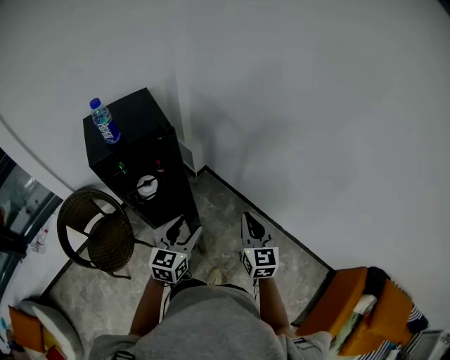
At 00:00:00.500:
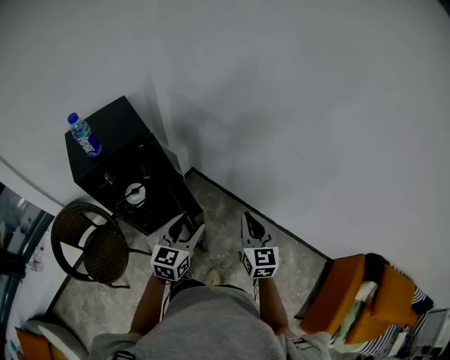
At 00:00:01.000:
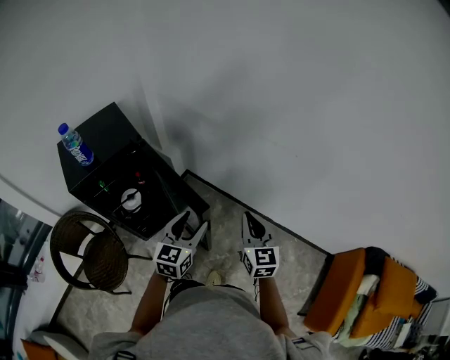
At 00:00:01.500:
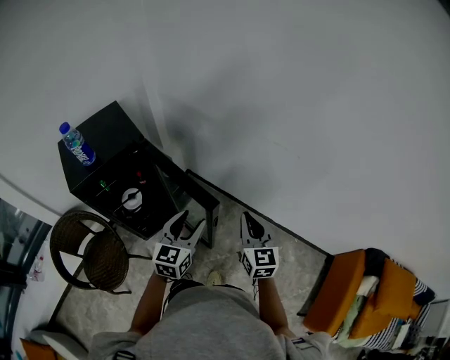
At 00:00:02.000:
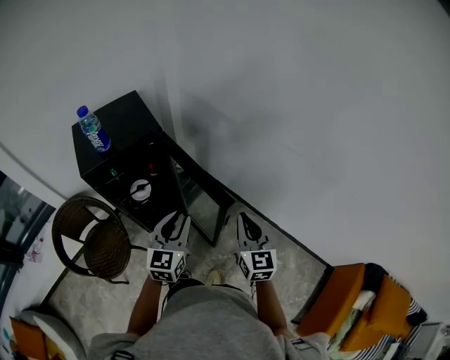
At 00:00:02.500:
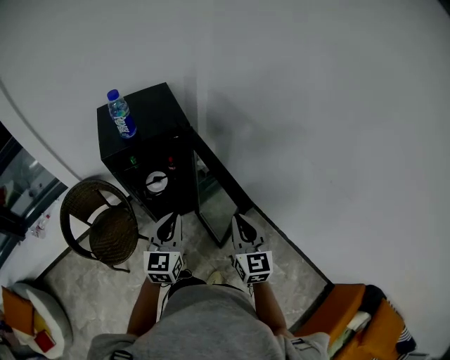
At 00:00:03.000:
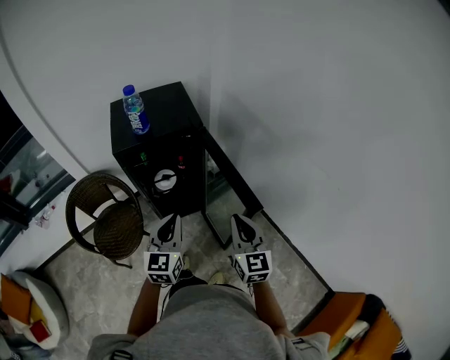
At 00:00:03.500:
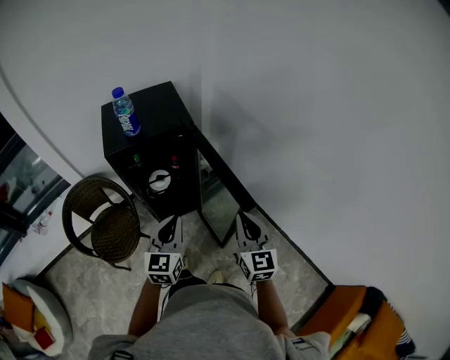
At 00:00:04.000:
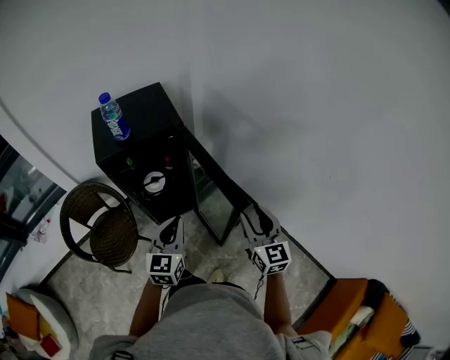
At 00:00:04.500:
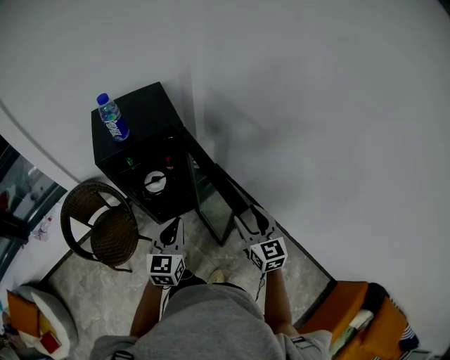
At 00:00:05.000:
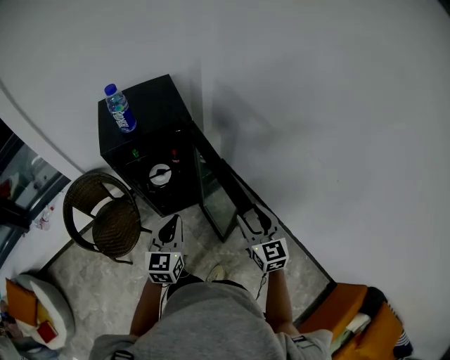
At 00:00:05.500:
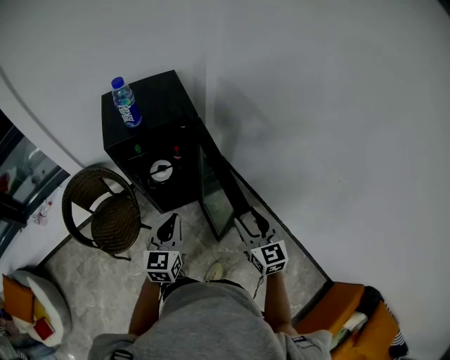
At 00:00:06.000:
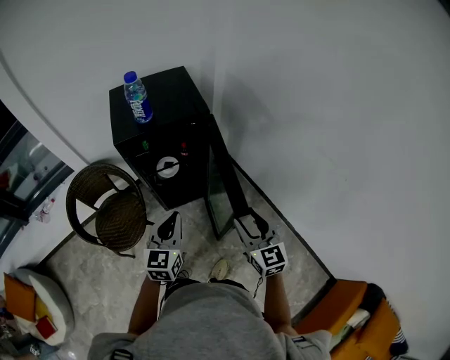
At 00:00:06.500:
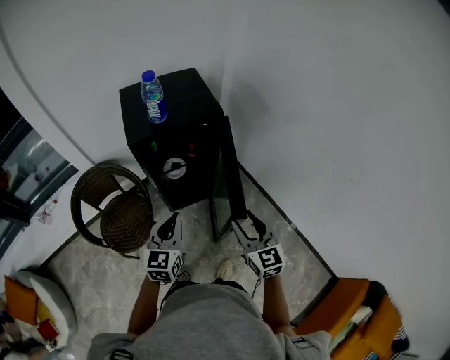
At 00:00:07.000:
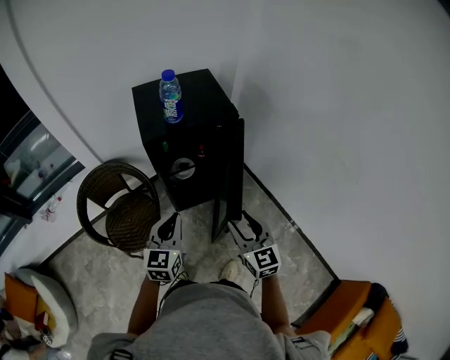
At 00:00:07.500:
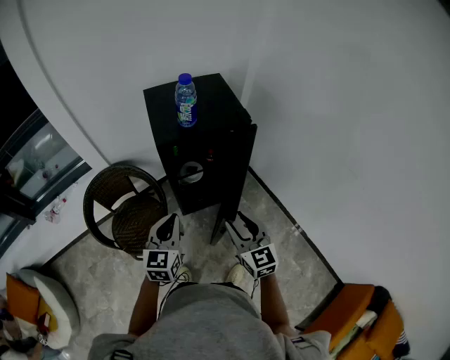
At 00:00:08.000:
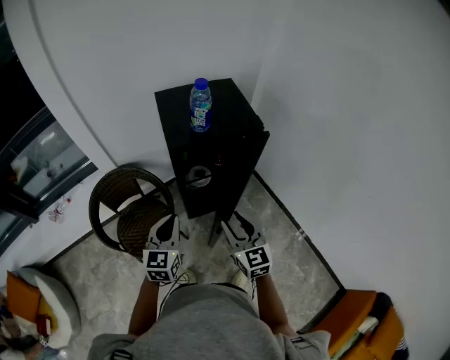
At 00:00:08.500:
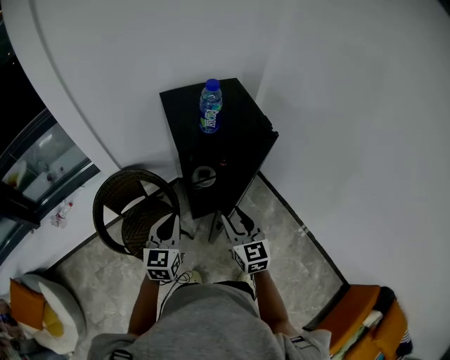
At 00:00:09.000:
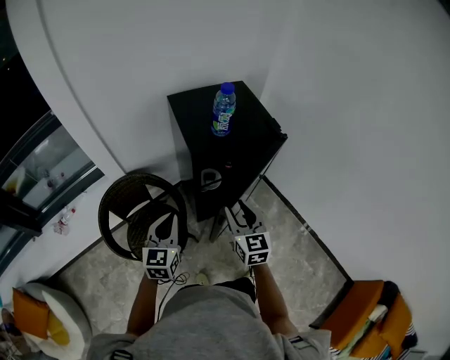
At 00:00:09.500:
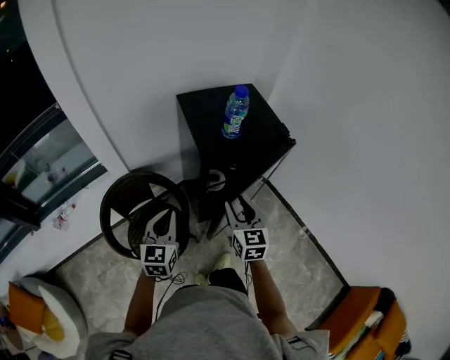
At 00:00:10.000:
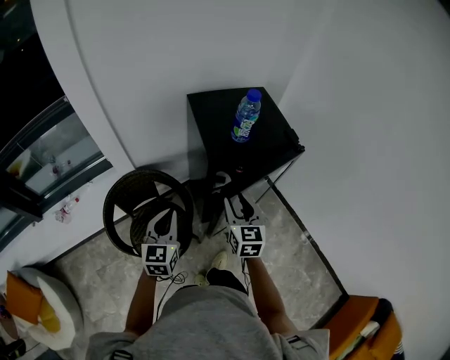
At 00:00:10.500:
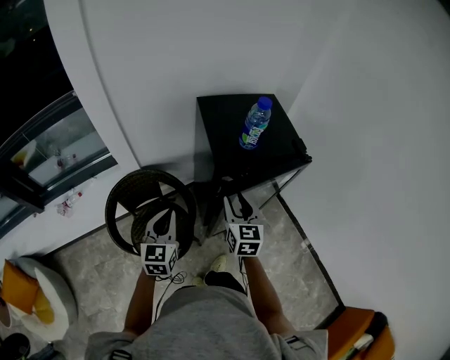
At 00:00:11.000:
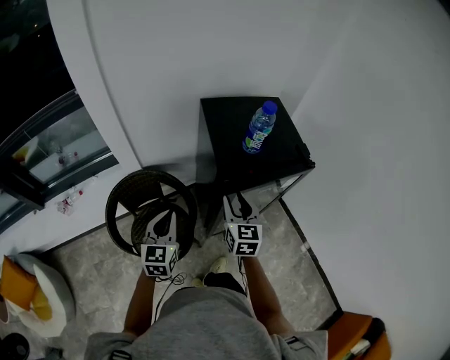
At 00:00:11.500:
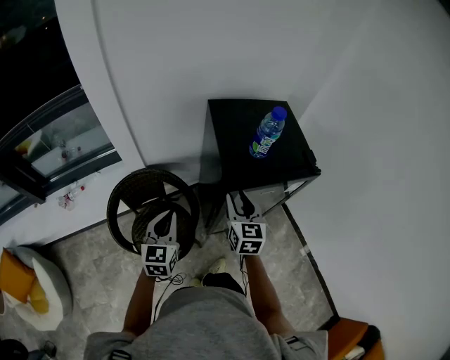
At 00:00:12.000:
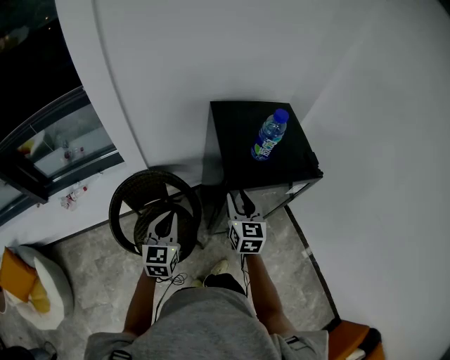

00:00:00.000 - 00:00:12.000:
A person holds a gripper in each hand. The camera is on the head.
00:00:00.000 - 00:00:02.000: The left gripper travels to the right and back again, some 5 cm each way, and closes.
00:00:02.000 - 00:00:04.000: The left gripper is displaced to the left by roughly 5 cm, and closes up, while the right gripper goes to the left and returns, roughly 10 cm each way, and opens its fingers.
00:00:04.000 - 00:00:06.000: Both grippers move to the left, roughly 10 cm.
00:00:06.000 - 00:00:08.000: The grippers both shift to the left by roughly 20 cm.
00:00:08.000 - 00:00:10.000: The right gripper is displaced forward and to the left by roughly 15 cm; the left gripper goes about 15 cm to the left and forward.
00:00:10.000 - 00:00:12.000: The right gripper travels forward by some 5 cm.

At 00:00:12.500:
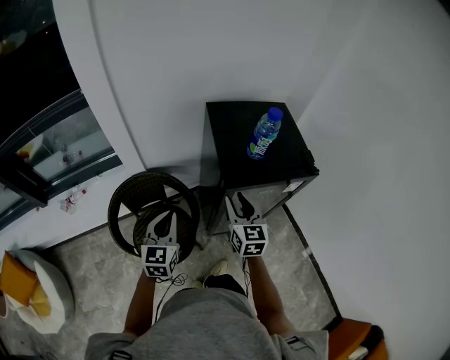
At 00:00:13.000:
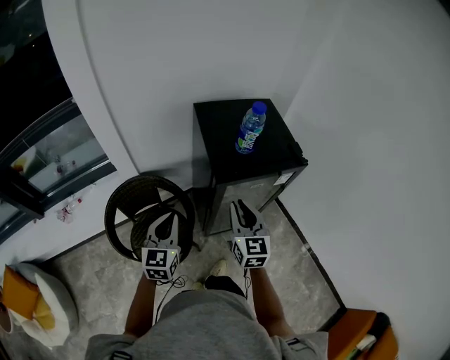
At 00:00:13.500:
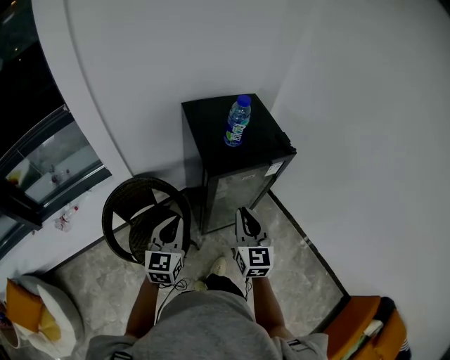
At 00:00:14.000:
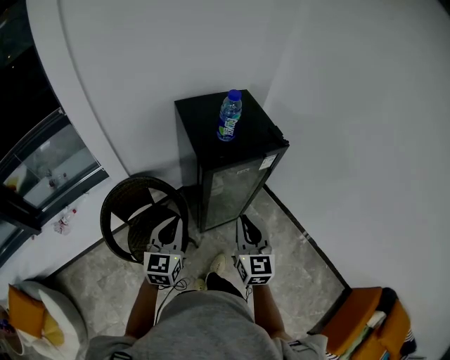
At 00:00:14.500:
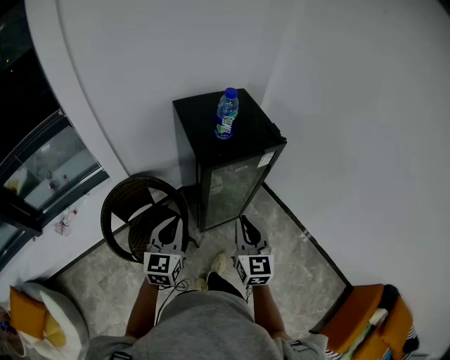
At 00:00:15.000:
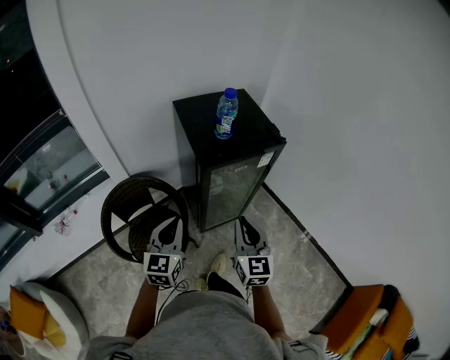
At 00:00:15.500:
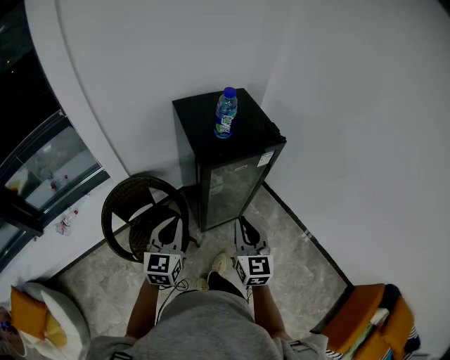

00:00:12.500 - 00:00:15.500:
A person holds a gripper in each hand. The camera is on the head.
00:00:12.500 - 00:00:14.000: The left gripper moves backward and to the right, about 10 cm. The right gripper goes roughly 20 cm backward and to the right, and closes up.
00:00:14.000 - 00:00:15.500: The grippers stay close to where they were, moving slightly.

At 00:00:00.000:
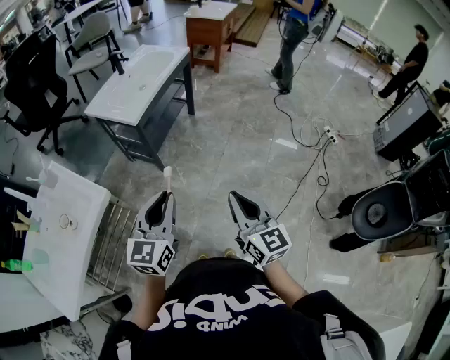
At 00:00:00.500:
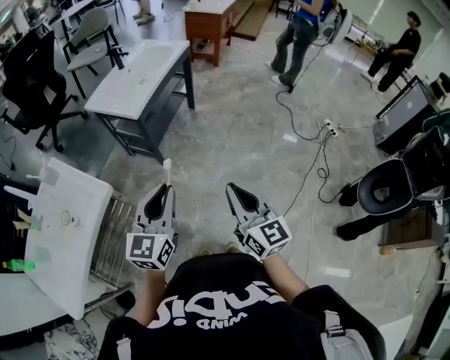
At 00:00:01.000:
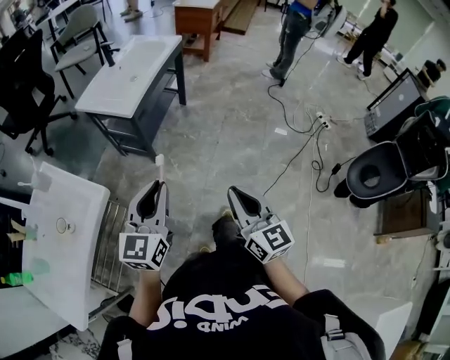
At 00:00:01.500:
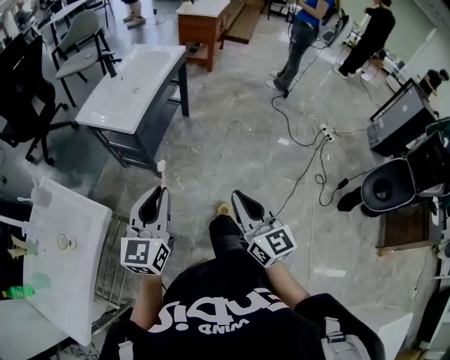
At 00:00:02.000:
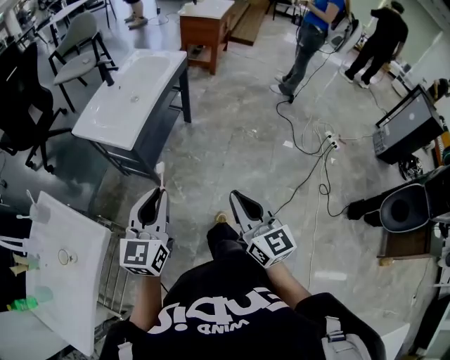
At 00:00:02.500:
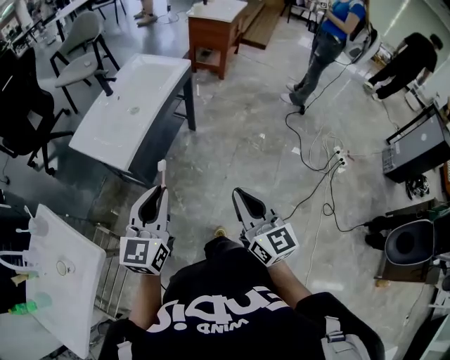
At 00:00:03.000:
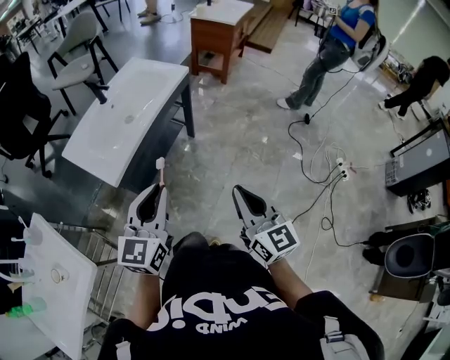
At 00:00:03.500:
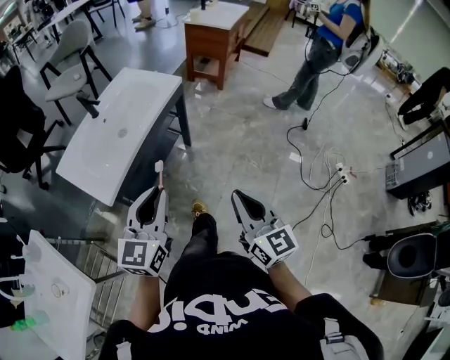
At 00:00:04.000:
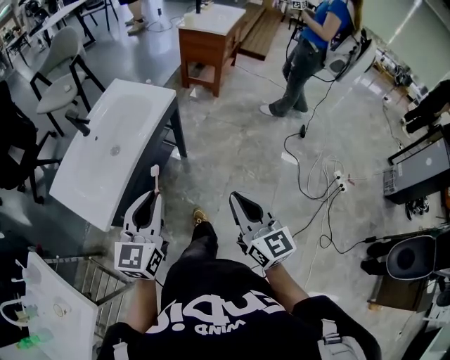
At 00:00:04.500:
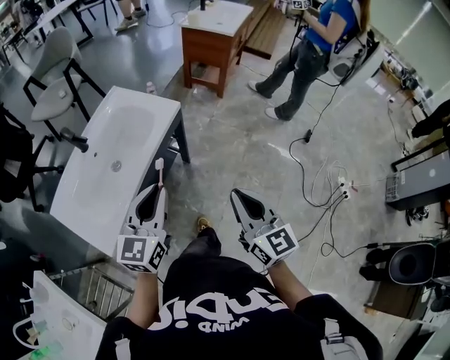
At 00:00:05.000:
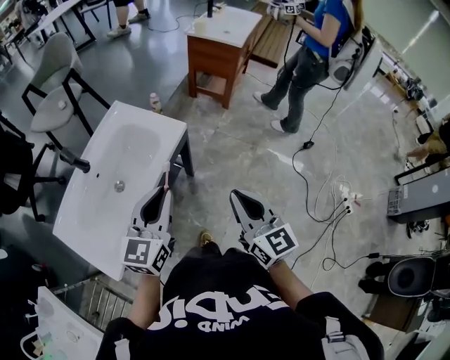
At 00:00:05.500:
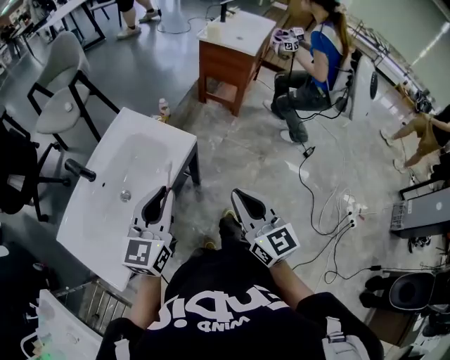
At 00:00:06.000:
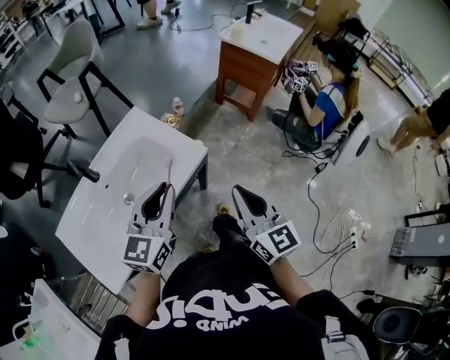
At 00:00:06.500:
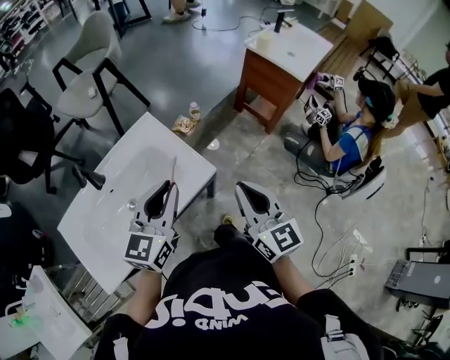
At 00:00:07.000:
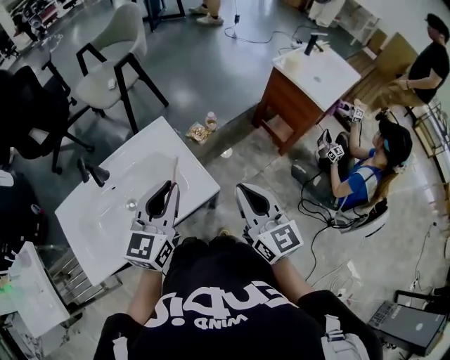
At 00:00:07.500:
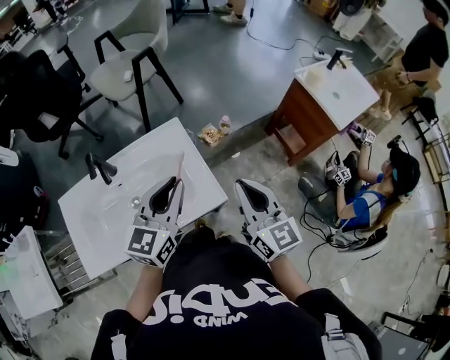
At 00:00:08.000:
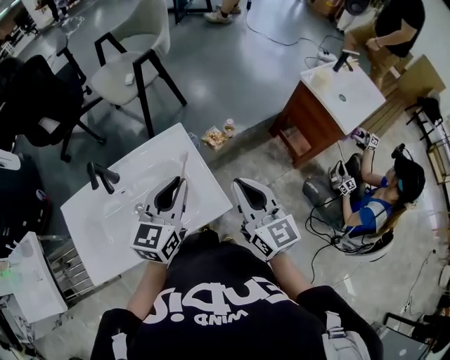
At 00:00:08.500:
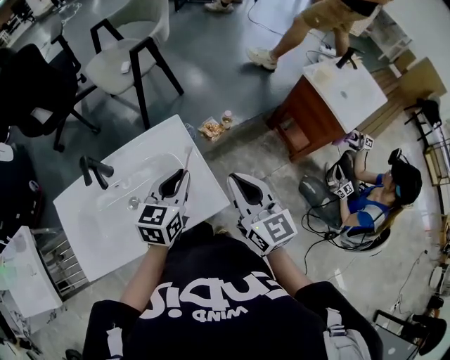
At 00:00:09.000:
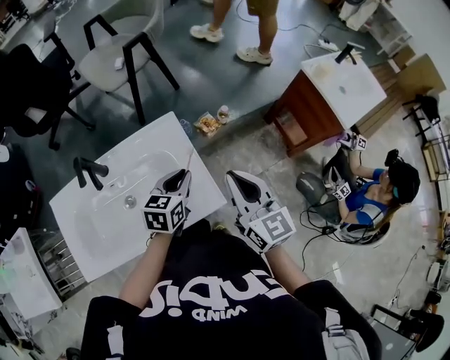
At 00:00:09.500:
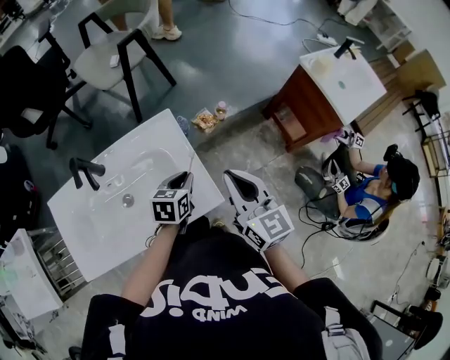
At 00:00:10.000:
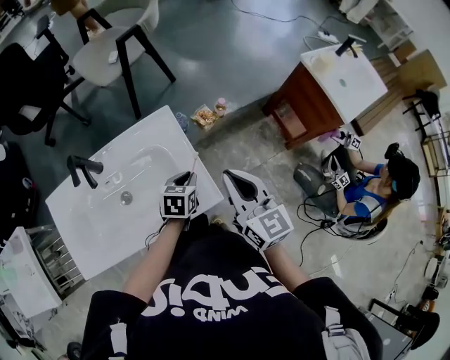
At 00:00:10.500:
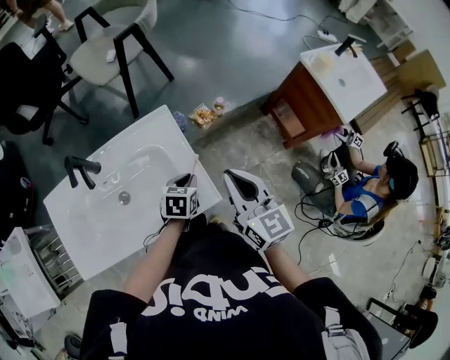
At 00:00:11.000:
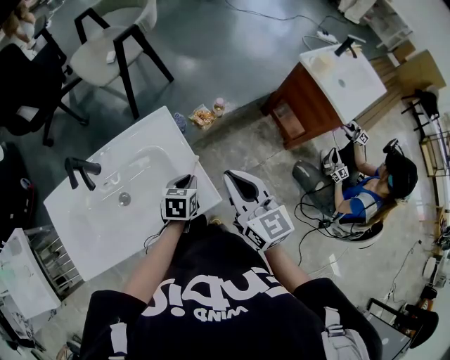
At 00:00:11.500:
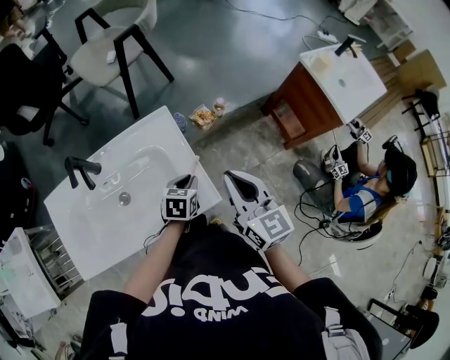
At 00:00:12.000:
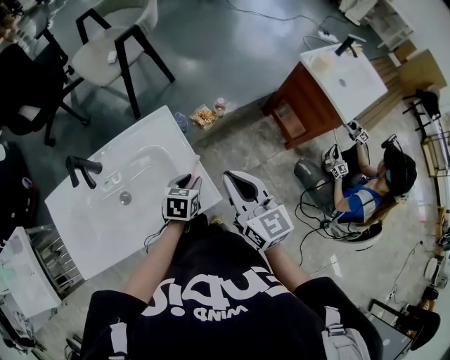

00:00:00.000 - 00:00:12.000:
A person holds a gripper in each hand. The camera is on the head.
00:00:00.000 - 00:00:02.000: Both grippers travel together forward, approximately 15 cm.
00:00:02.000 - 00:00:04.000: Both grippers move forward, approximately 35 cm.
00:00:04.000 - 00:00:06.000: The two grippers go approximately 35 cm forward.
00:00:06.000 - 00:00:08.000: The grippers both shift forward by about 25 cm. The left gripper swivels approximately 20 degrees; the right gripper turns by roughly 30 degrees.
00:00:08.000 - 00:00:10.000: The left gripper heads downward, covering approximately 25 cm, and angles its fingers downward, by some 40 degrees.
00:00:10.000 - 00:00:12.000: The grippers move only a little.
